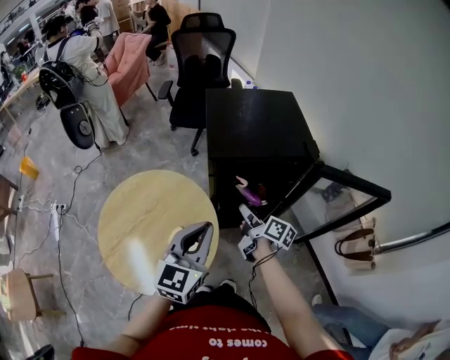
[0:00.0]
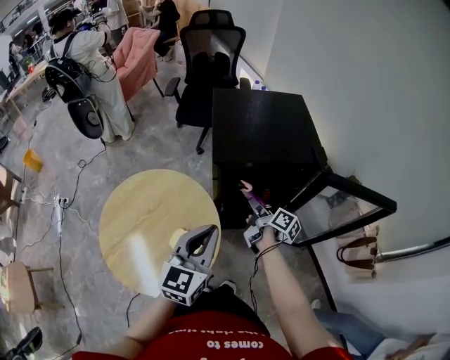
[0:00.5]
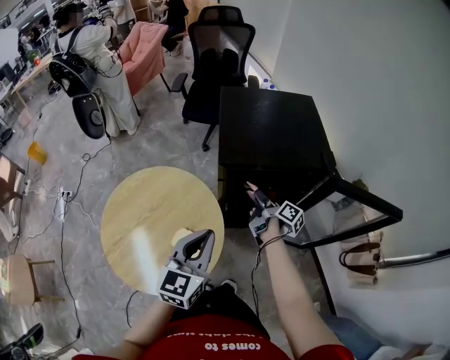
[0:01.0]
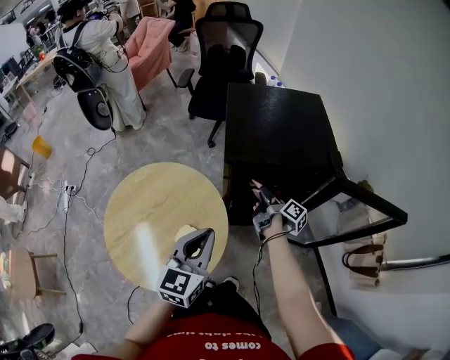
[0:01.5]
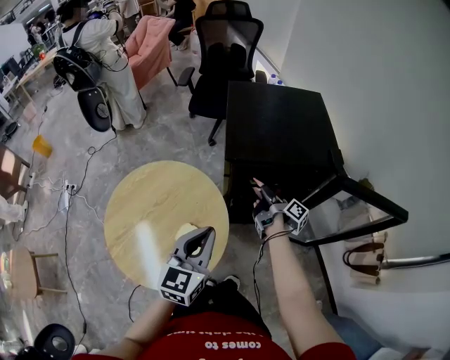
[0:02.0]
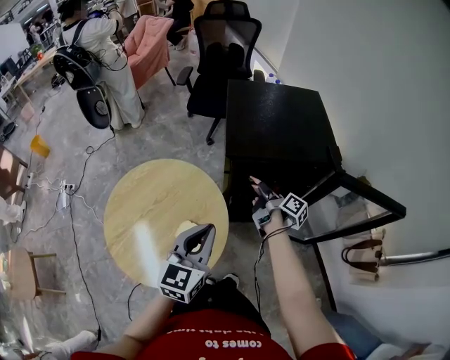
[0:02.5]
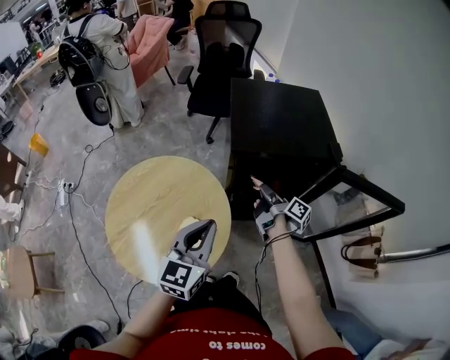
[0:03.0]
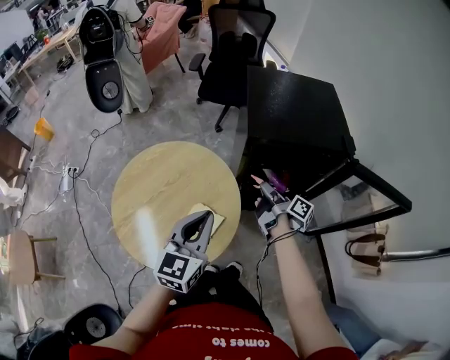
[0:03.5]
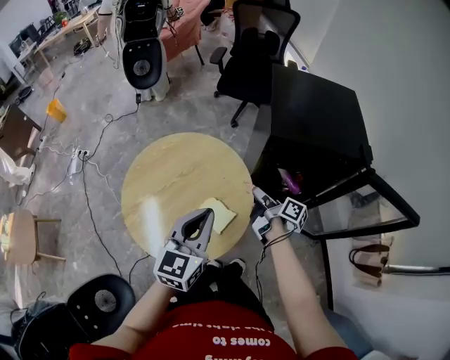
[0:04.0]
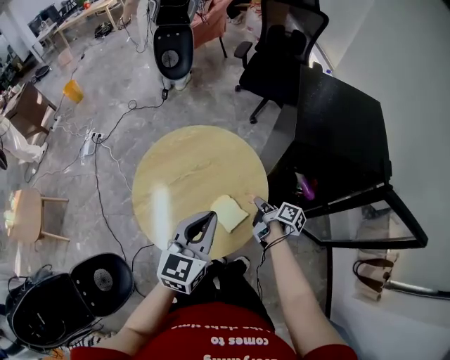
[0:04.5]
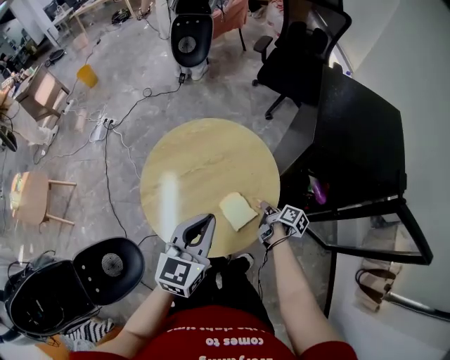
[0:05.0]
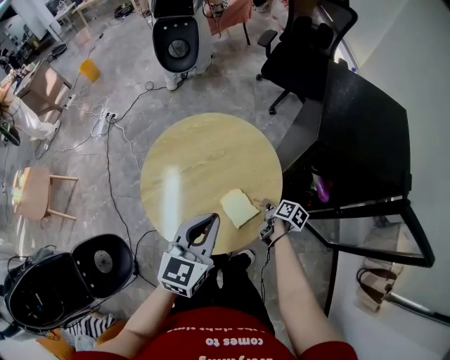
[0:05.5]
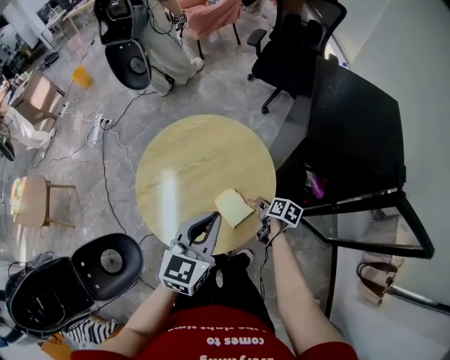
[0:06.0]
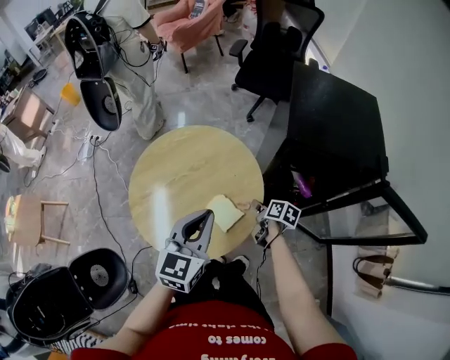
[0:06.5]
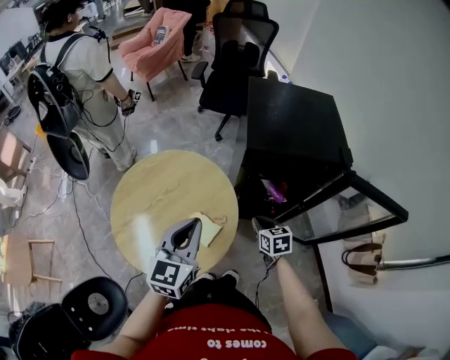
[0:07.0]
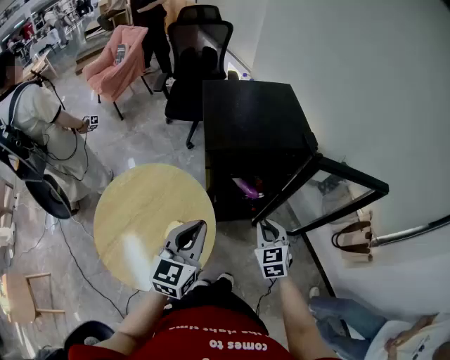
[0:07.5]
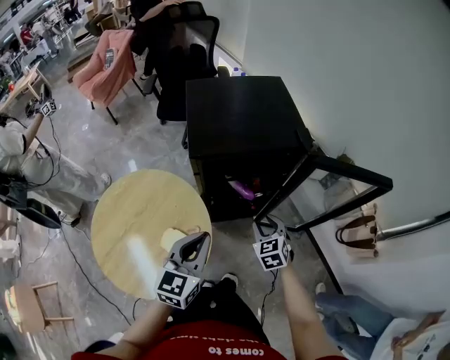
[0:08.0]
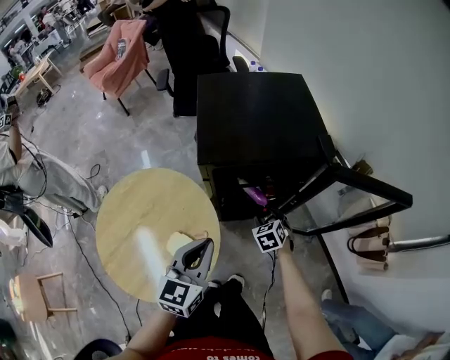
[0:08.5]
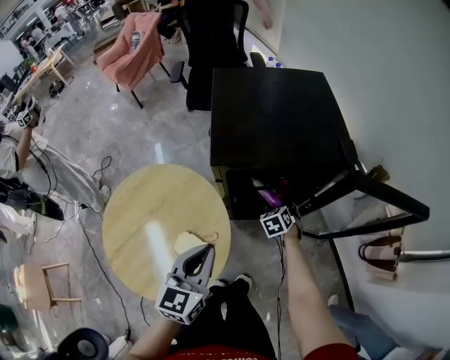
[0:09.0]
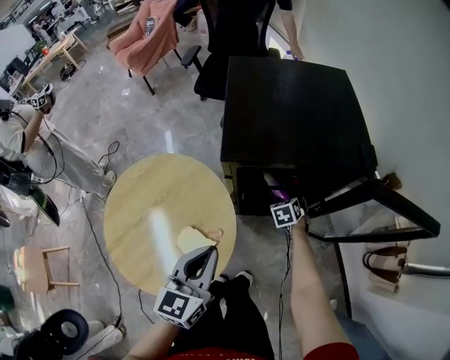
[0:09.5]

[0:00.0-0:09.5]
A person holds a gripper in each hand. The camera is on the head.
0:00.0 to 0:02.0: The right gripper moves forward and downward, roughly 10 cm, and swivels roughly 30 degrees.
0:02.0 to 0:04.0: The left gripper goes about 10 cm to the left. Meanwhile the right gripper moves to the left and backward, approximately 15 cm, and changes its angle by some 20 degrees.
0:04.0 to 0:05.5: The left gripper ends up approximately 5 cm from where it was; the right gripper goes some 15 cm downward, and tips its fingers downward by approximately 30 degrees.
0:05.5 to 0:07.5: The left gripper moves about 15 cm, and changes its angle by roughly 30 degrees; the right gripper moves upward, some 20 cm, and rolls counterclockwise, seen from behind, by about 60 degrees.
0:07.5 to 0:09.5: The left gripper heads downward, covering approximately 10 cm. Meanwhile the right gripper moves downward and forward, about 30 cm, rotates roughly 30 degrees, and opens its fingers.

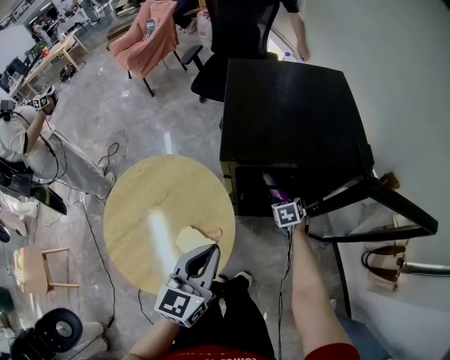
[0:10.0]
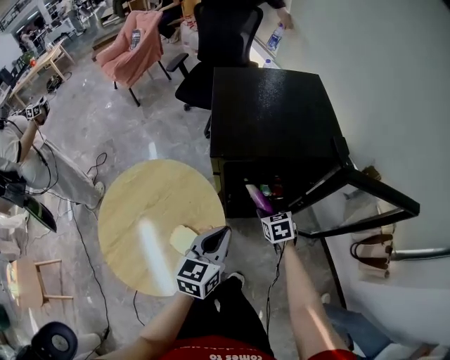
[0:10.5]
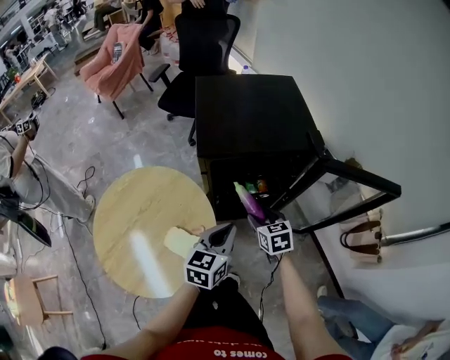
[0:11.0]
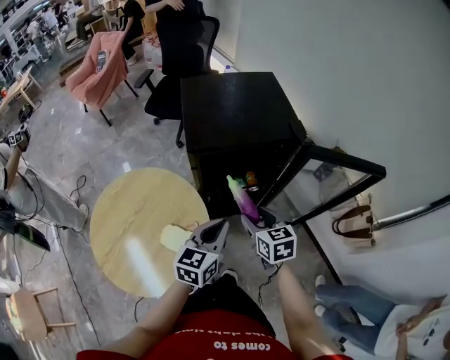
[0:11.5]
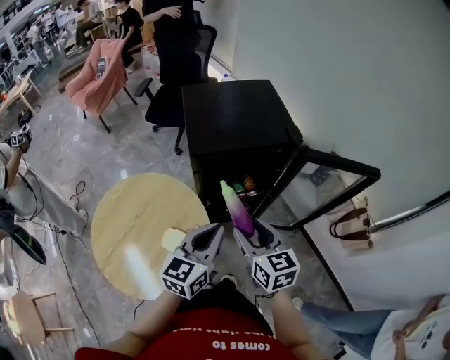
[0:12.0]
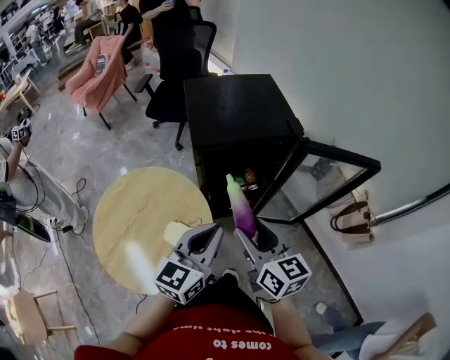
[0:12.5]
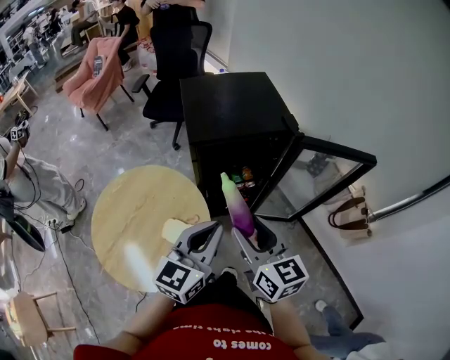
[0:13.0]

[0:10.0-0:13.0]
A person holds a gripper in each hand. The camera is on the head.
0:10.0 to 0:11.5: The left gripper travels to the right by about 10 cm; the right gripper heads upward and backward, covering some 30 cm, and changes its angle by about 30 degrees.
0:11.5 to 0:13.0: Both grippers travel together upward and backward, roughly 15 cm. The right gripper turns by about 20 degrees.

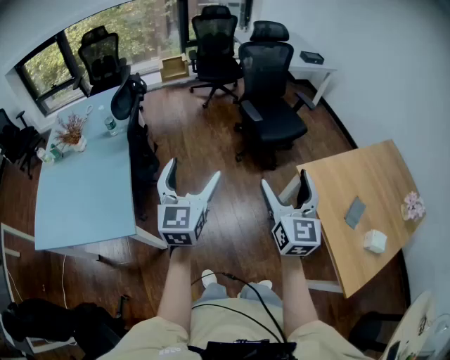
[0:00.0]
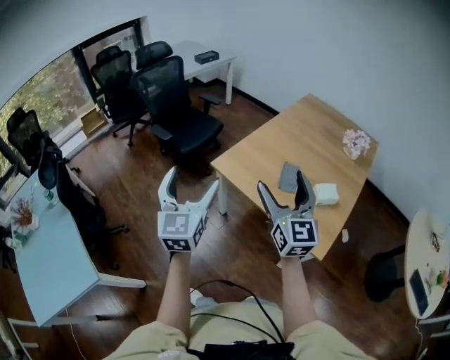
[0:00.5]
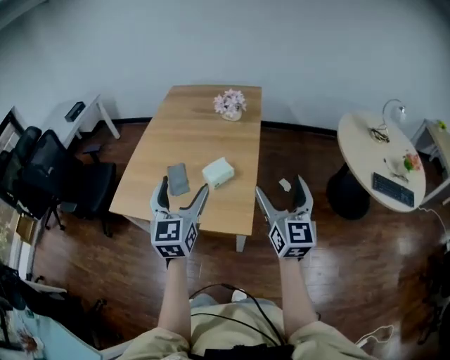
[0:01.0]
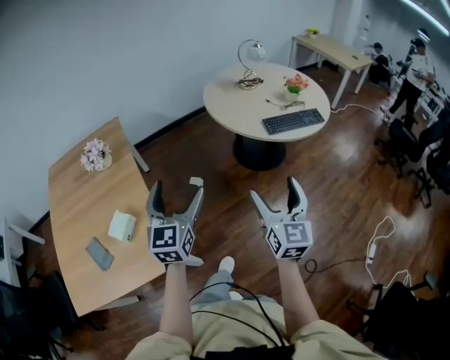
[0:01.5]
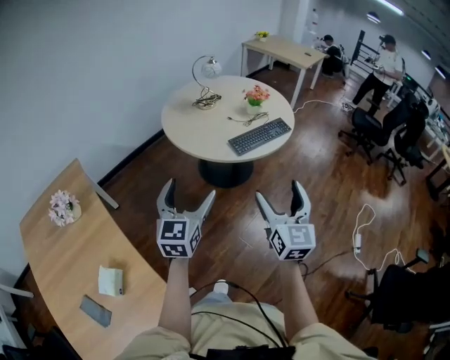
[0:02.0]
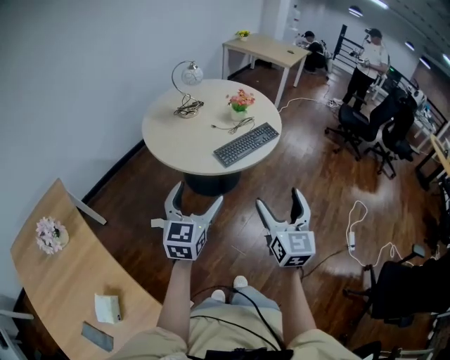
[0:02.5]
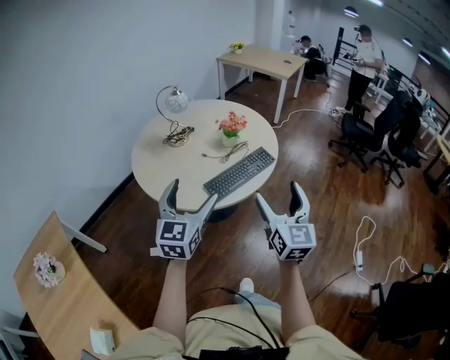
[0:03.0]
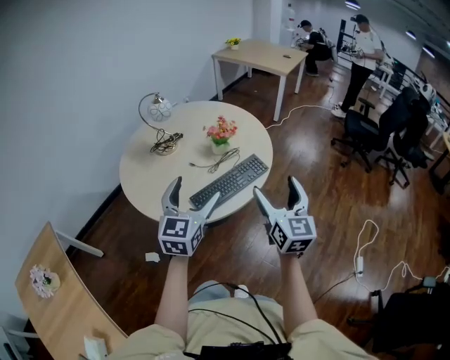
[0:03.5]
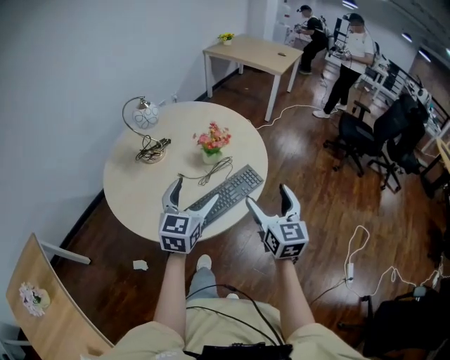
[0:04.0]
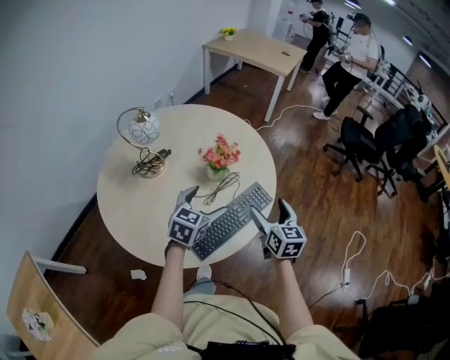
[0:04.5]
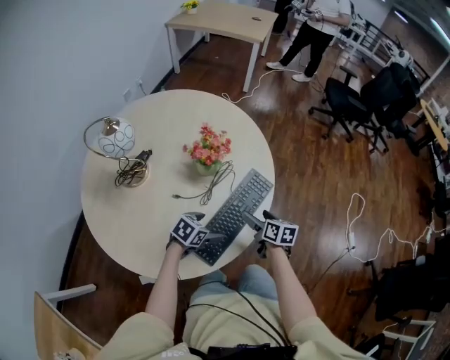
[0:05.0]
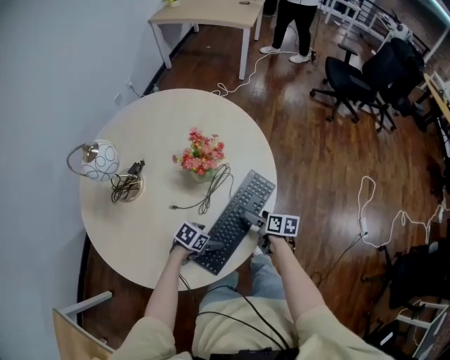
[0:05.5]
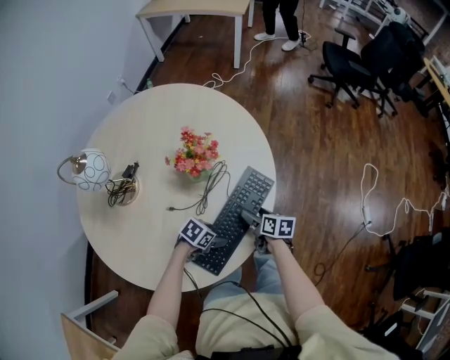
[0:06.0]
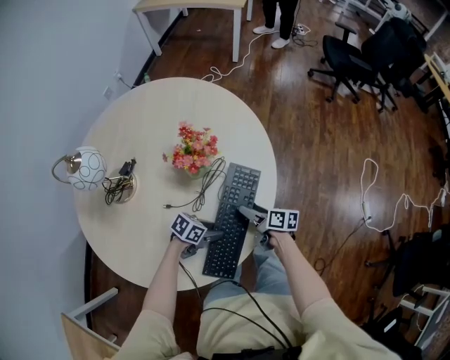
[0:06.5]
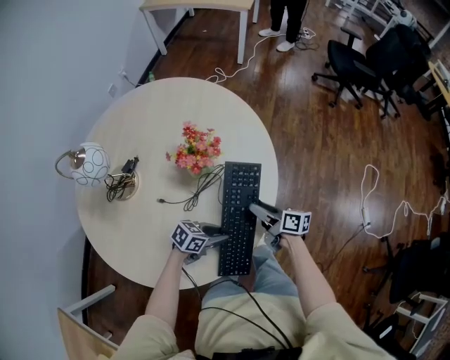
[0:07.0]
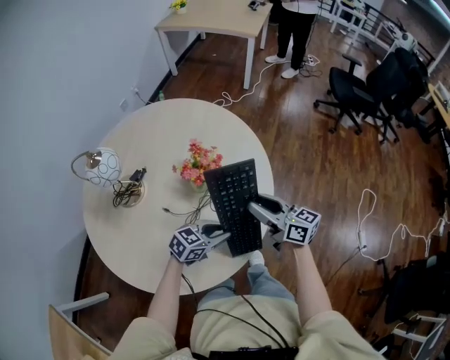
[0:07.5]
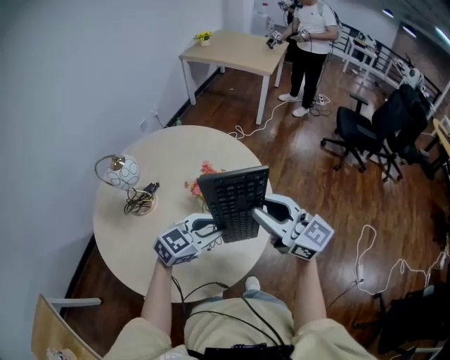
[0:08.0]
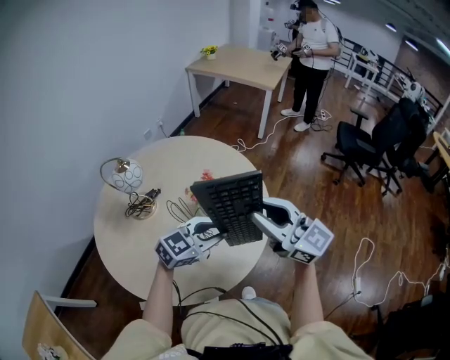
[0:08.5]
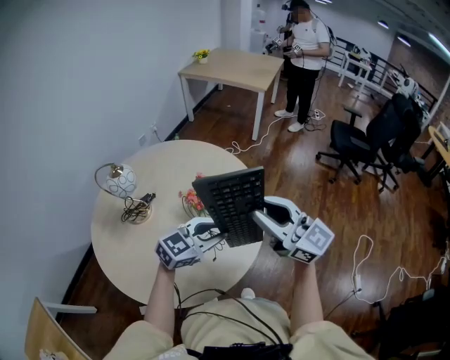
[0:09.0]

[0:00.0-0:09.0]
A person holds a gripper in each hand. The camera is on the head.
0:00.0 to 0:02.0: The two grippers travel together, roughly 1 m. The right gripper swivels approximately 110 degrees. The left gripper swivels approximately 120 degrees.
0:02.0 to 0:04.5: The pair of grippers is taken forward, roughly 60 cm. The right gripper rotates roughly 20 degrees. Meanwhile the left gripper rotates approximately 40 degrees.
0:04.5 to 0:07.0: Both grippers move downward, roughly 25 cm. The left gripper rotates about 60 degrees, and closes up; the right gripper twists some 50 degrees clockwise, seen from behind, and closes.
0:07.0 to 0:09.0: The two grippers go roughly 35 cm upward. The left gripper changes its angle by approximately 50 degrees; the right gripper rotates around the line of its fingers by roughly 70 degrees, counterclockwise from behind.

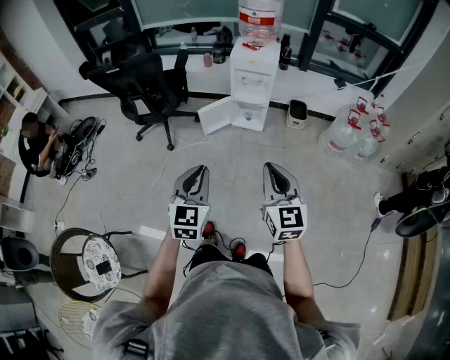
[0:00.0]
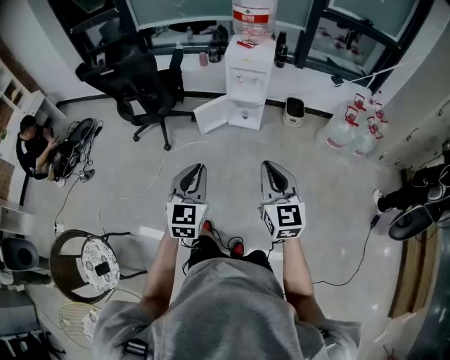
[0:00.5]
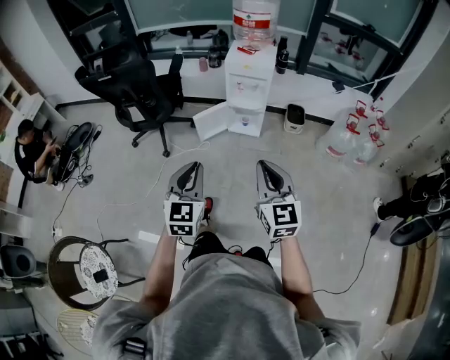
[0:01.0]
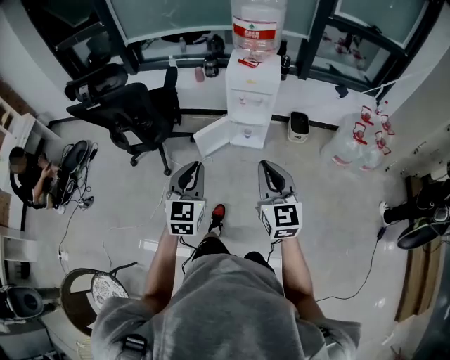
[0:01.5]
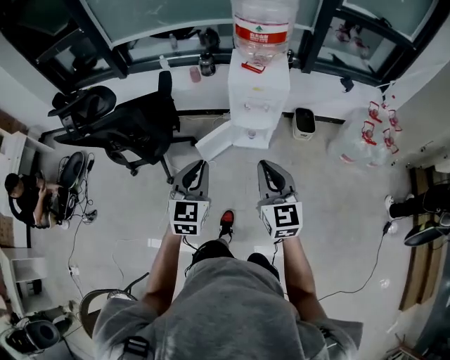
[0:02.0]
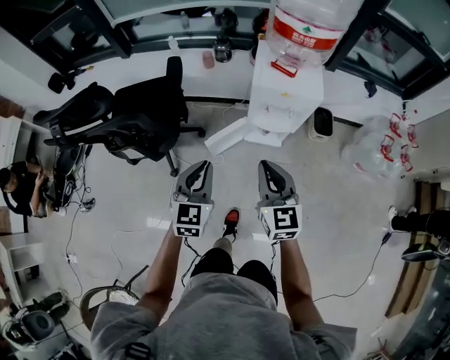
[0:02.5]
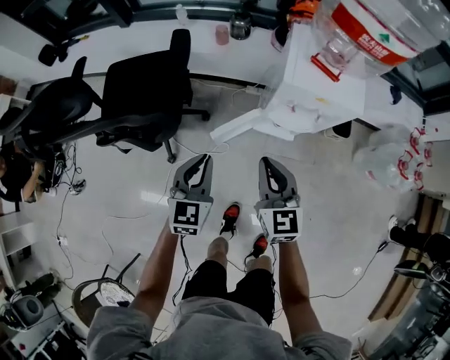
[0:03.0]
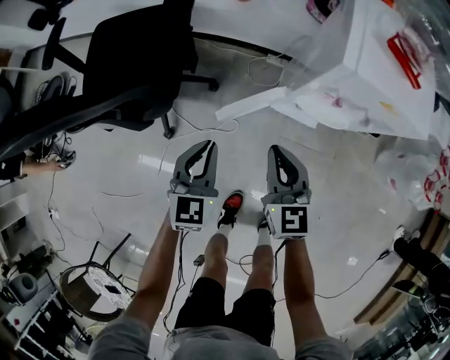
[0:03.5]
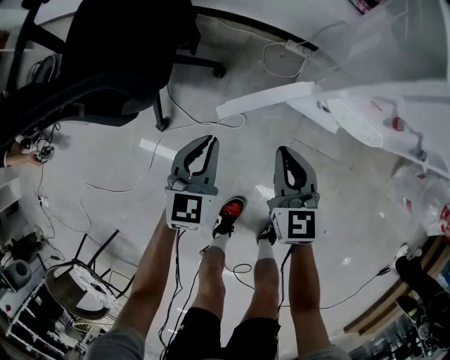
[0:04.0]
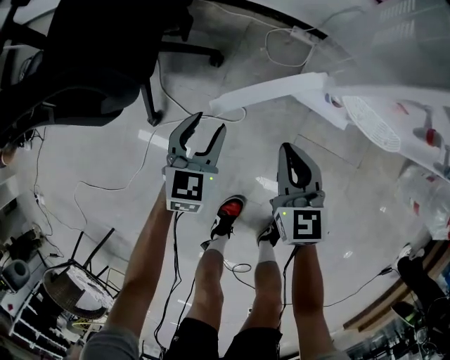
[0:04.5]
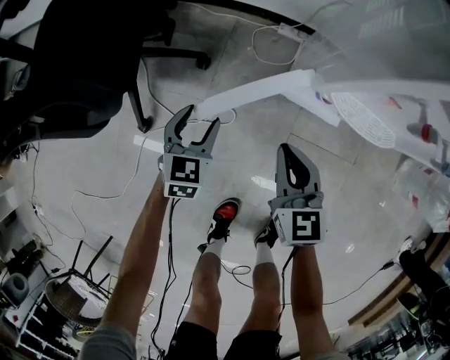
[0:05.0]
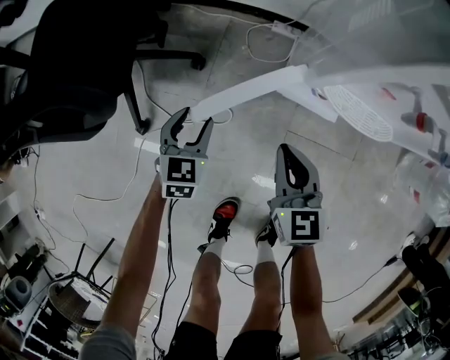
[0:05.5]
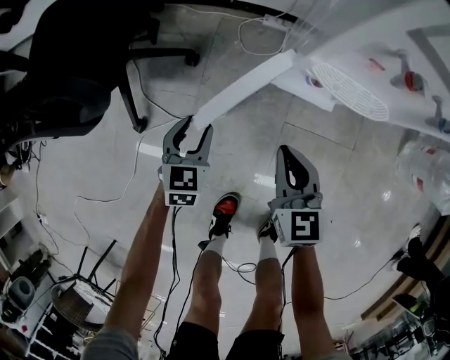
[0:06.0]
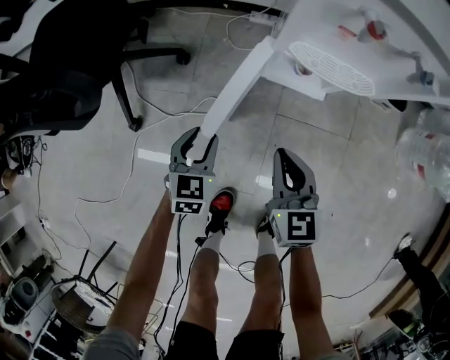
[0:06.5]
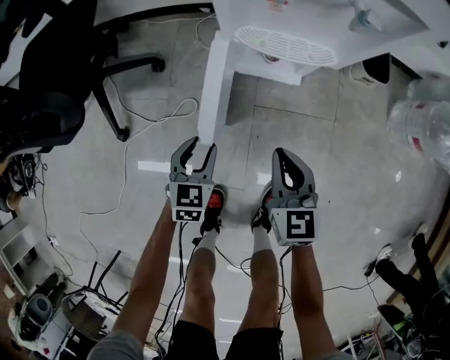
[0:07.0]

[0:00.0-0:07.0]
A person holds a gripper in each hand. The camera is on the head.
0:00.0 to 0:02.0: The grippers both shift forward by some 35 cm.
0:02.0 to 0:03.5: The left gripper travels downward and forward by roughly 40 cm; the right gripper shifts some 50 cm downward, forward and to the left.
0:03.5 to 0:05.0: Both grippers travel together downward, approximately 25 cm. The left gripper opens its fingers.
0:05.0 to 0:07.0: Both grippers move to the right and backward, about 20 cm.
